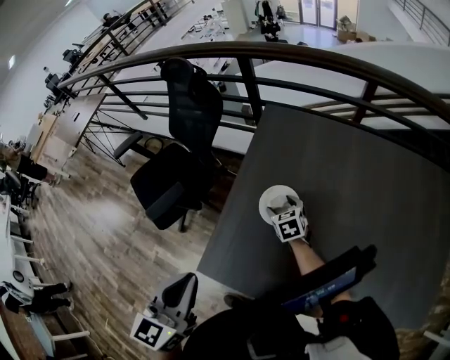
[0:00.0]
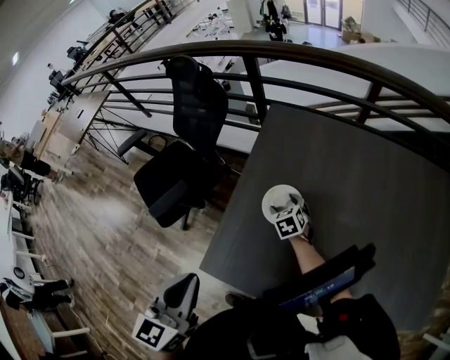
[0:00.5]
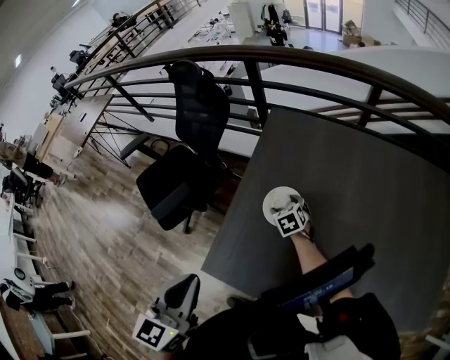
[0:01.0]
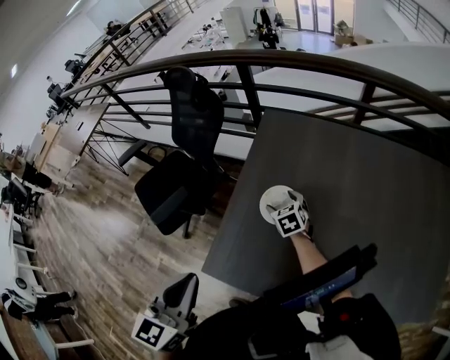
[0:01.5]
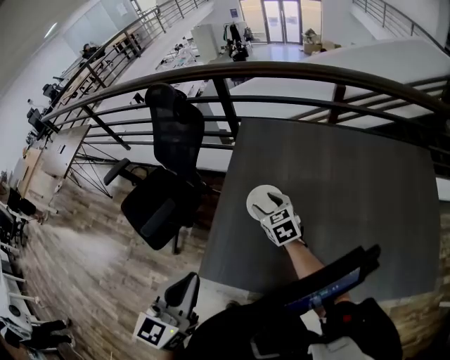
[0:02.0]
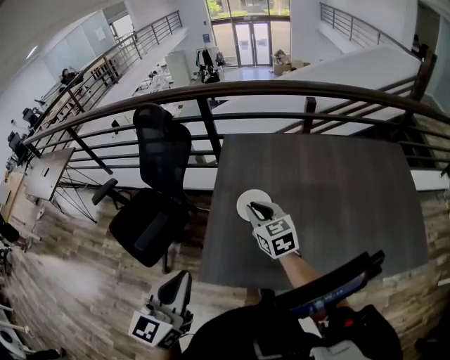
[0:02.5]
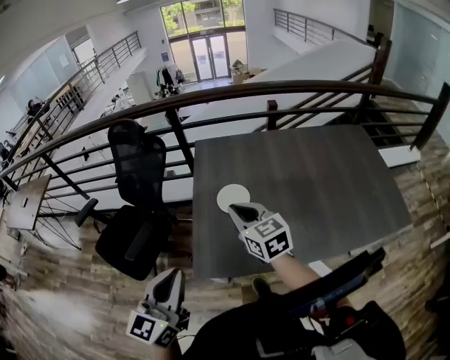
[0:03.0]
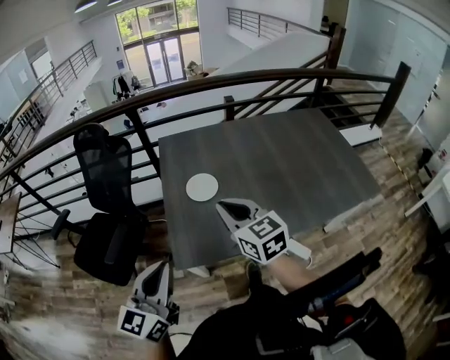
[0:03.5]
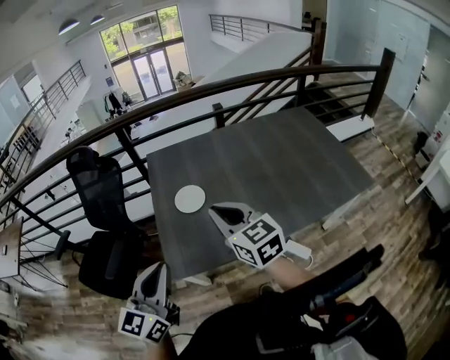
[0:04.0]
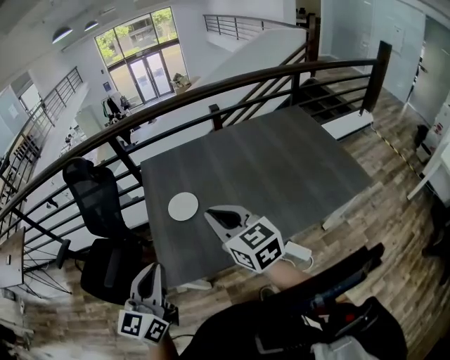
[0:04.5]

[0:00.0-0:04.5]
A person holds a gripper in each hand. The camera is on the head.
0:00.0 to 0:02.0: The right gripper goes some 10 cm upward.
0:02.0 to 0:04.5: The right gripper travels backward and upward by roughly 35 cm, turns by approximately 30 degrees, and closes its fingers; the left gripper heads backward, covering approximately 10 cm, and changes its angle by about 20 degrees.

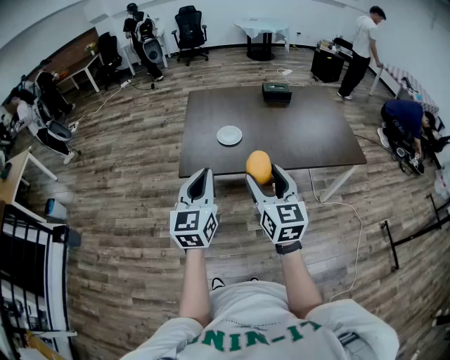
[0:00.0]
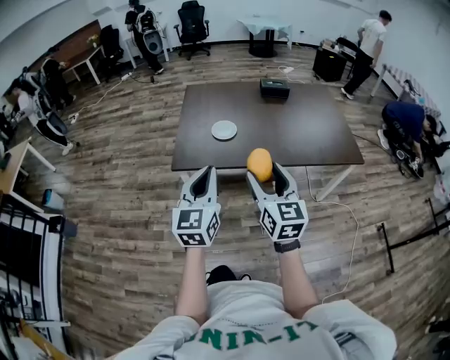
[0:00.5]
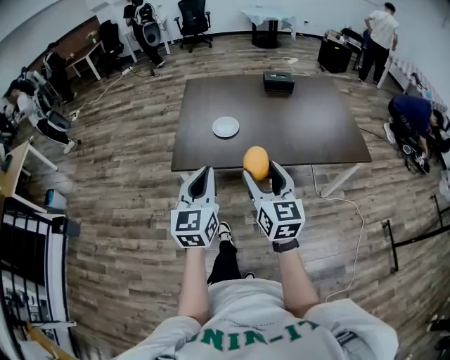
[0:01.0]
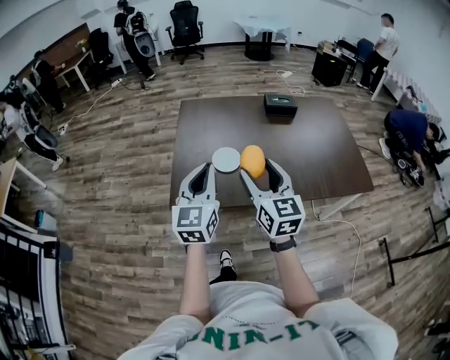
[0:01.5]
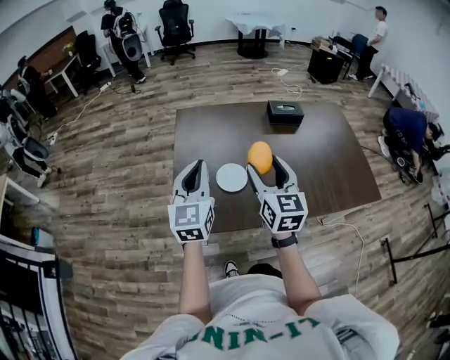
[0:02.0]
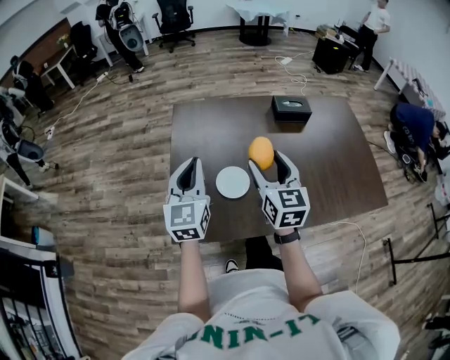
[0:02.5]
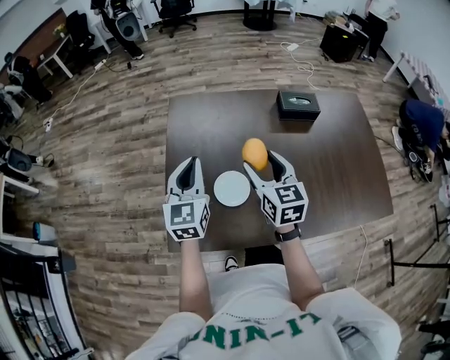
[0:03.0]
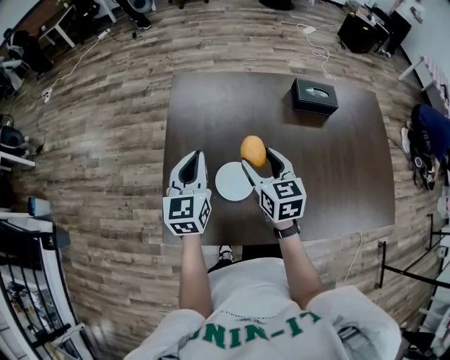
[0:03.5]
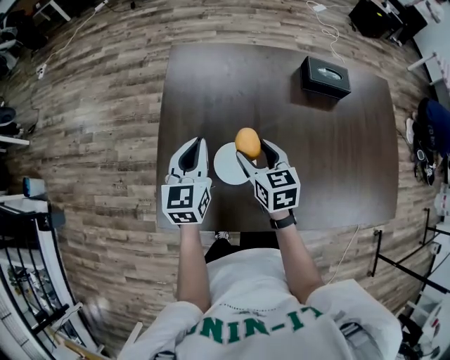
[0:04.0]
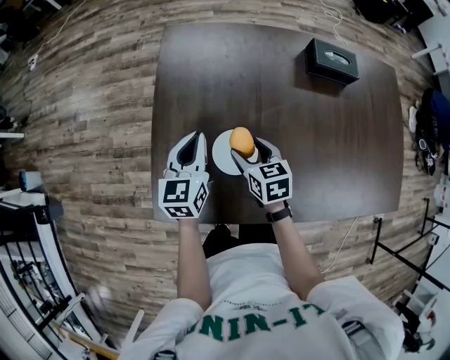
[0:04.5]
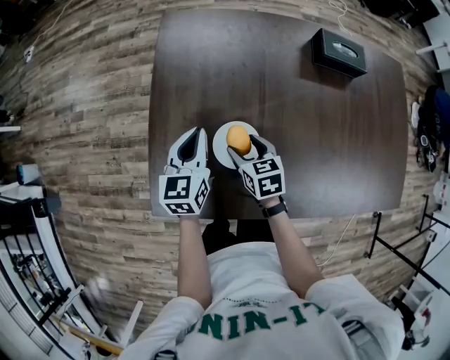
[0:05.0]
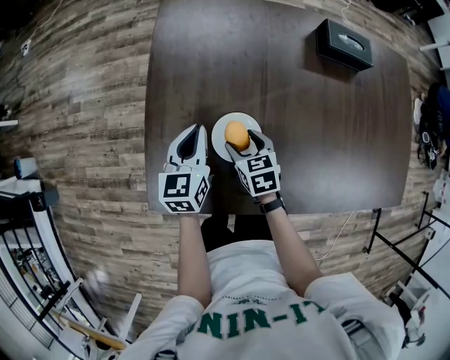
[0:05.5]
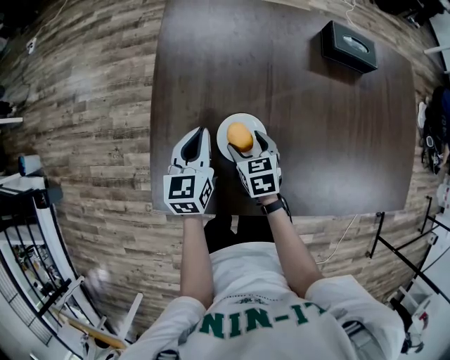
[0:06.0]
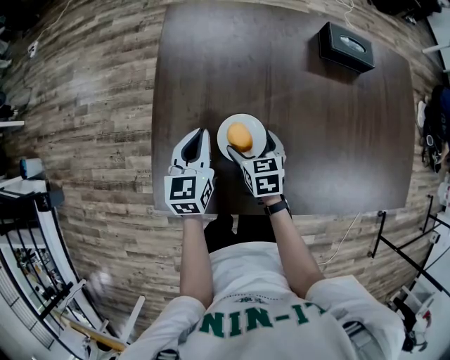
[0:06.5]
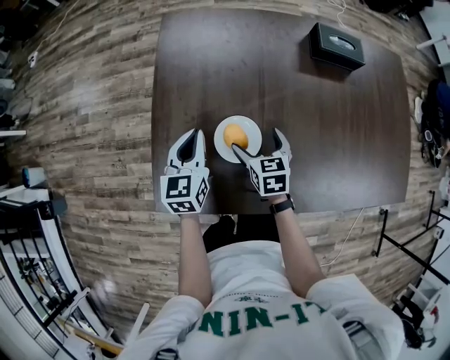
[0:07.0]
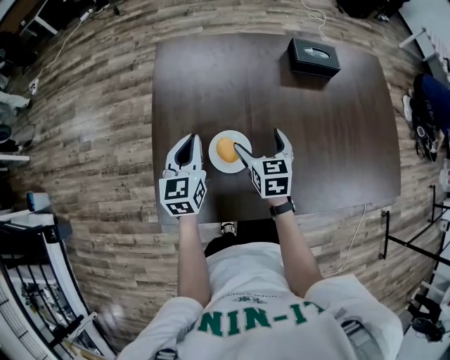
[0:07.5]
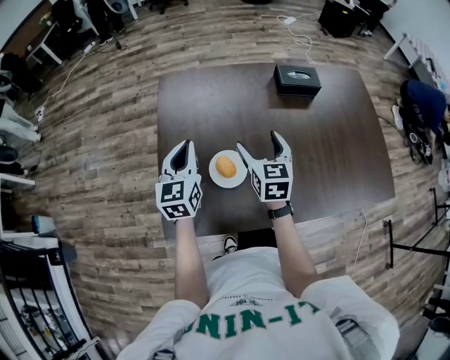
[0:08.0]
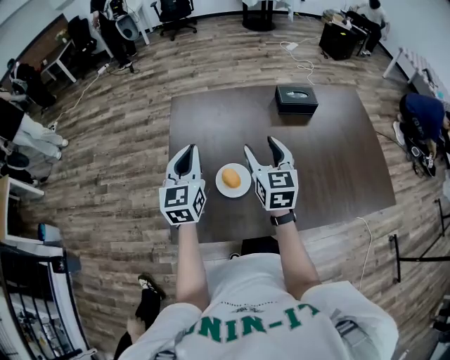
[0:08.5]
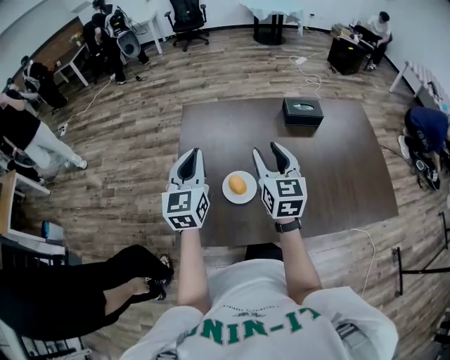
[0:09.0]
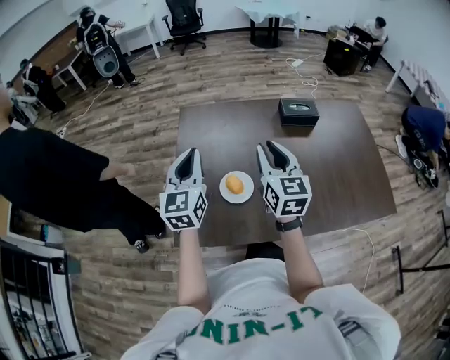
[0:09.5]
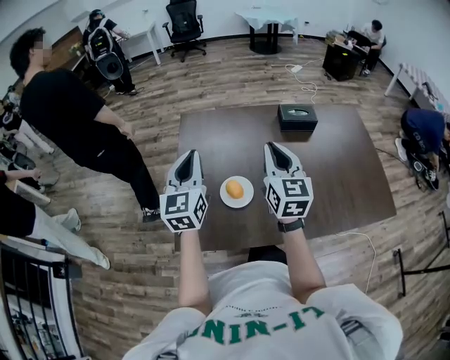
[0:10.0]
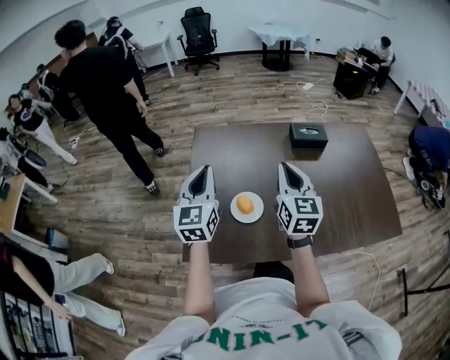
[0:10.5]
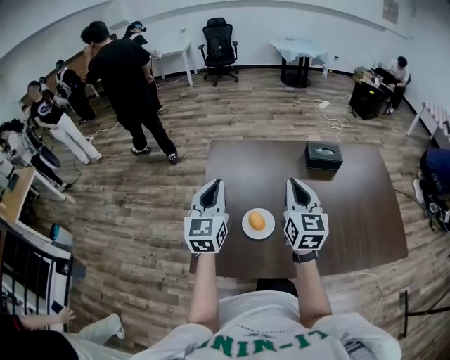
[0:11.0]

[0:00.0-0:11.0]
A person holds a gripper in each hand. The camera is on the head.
0:00.0 to 0:02.0: Both grippers travel together forward, some 40 cm.
0:02.0 to 0:03.5: The two grippers go about 25 cm forward and downward. The right gripper changes its angle by about 20 degrees.
0:03.5 to 0:05.5: Both grippers move downward, about 20 cm. The right gripper rotates roughly 20 degrees.
0:05.5 to 0:07.5: The left gripper heads upward, covering about 10 cm. Meanwhile the right gripper travels upward and to the right by approximately 15 cm, turns by approximately 20 degrees, and opens.
0:07.5 to 0:09.0: Both grippers move upward, about 20 cm. The right gripper turns by approximately 30 degrees, and closes.
0:09.0 to 0:11.0: The right gripper closes up.

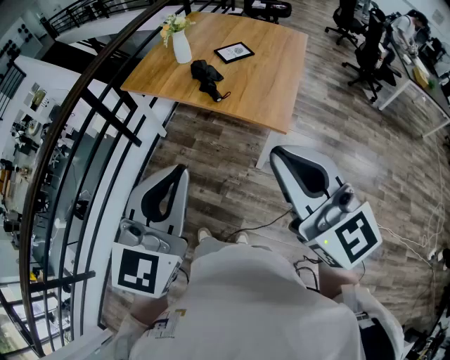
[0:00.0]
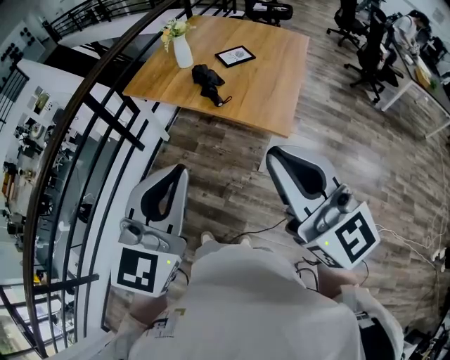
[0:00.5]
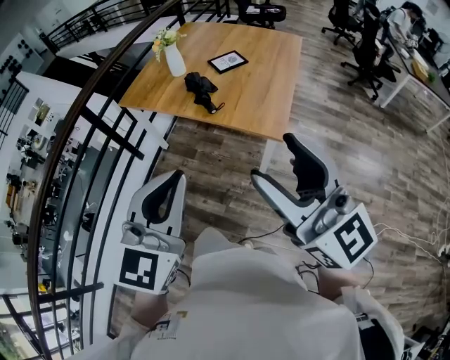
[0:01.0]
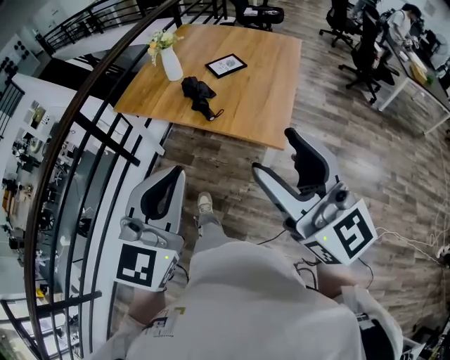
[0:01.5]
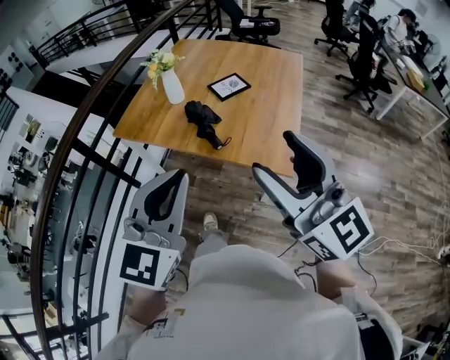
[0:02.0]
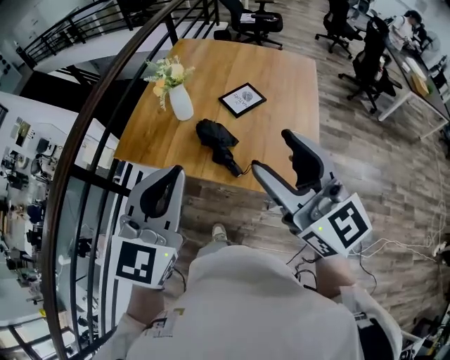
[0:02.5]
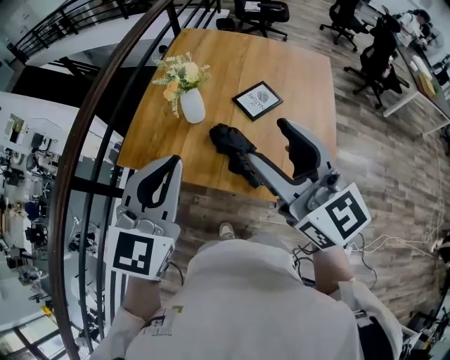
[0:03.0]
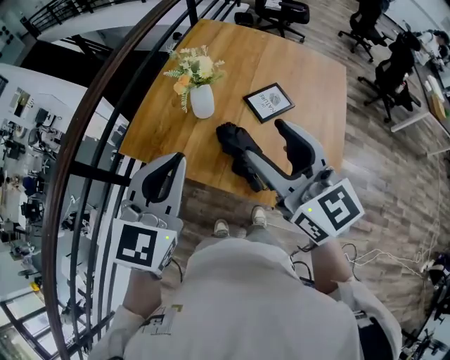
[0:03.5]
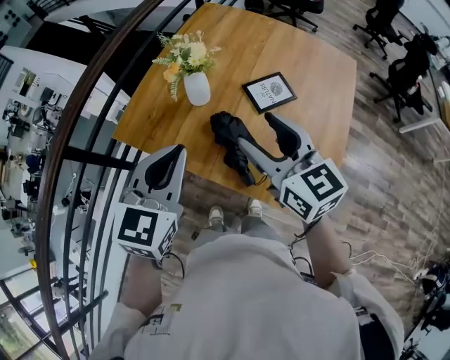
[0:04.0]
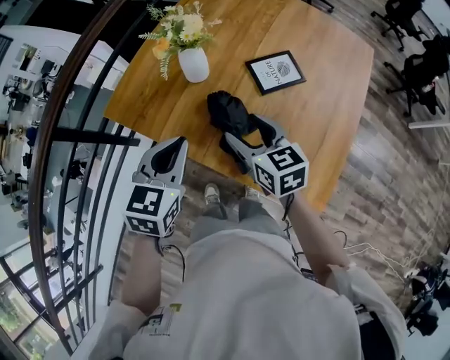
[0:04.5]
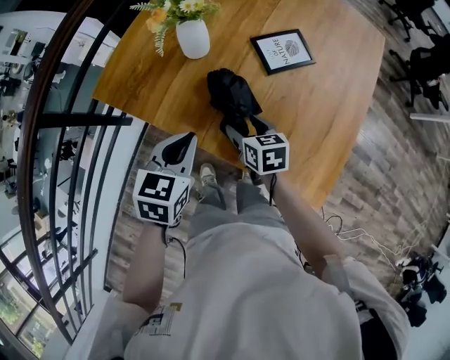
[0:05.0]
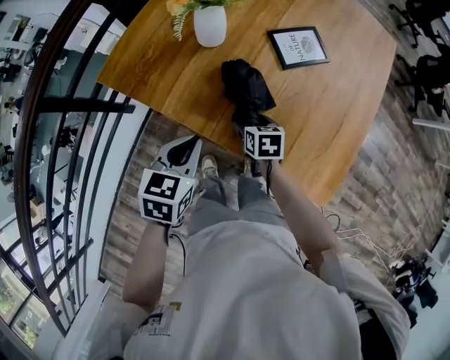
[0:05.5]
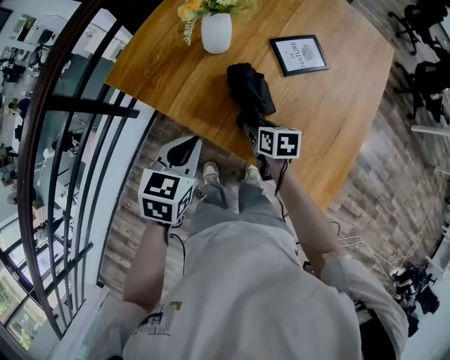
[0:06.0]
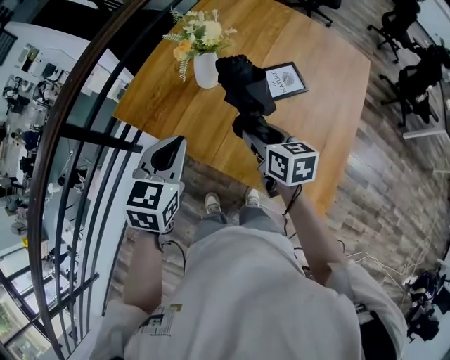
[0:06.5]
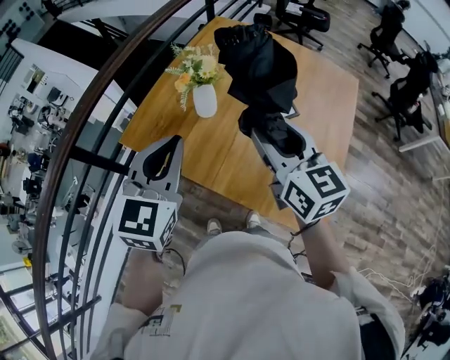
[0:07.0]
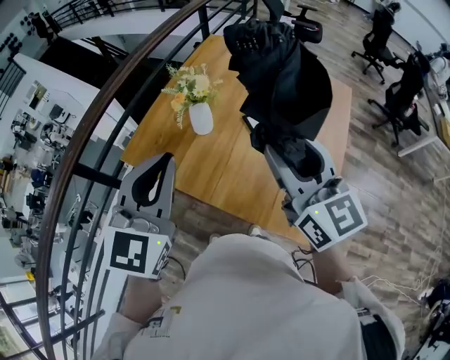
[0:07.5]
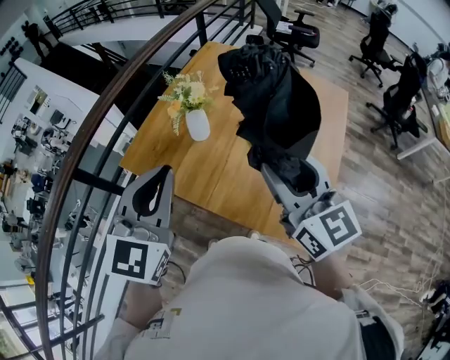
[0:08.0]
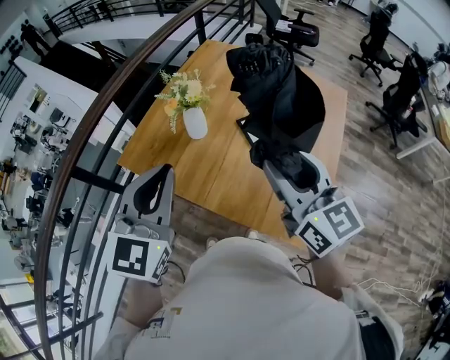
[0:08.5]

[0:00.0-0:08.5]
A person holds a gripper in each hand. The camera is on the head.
0:00.0 to 0:02.0: The two grippers go some 20 cm forward. The right gripper opens its fingers.
0:02.0 to 0:04.0: The grippers both shift forward by approximately 35 cm. The right gripper rotates some 30 degrees.
0:04.0 to 0:06.5: The right gripper goes roughly 20 cm downward, and changes its angle by approximately 30 degrees; the left gripper travels downward by about 10 cm.
0:06.5 to 0:08.5: The two grippers go approximately 20 cm upward. The left gripper swivels about 30 degrees; the right gripper turns by roughly 40 degrees.

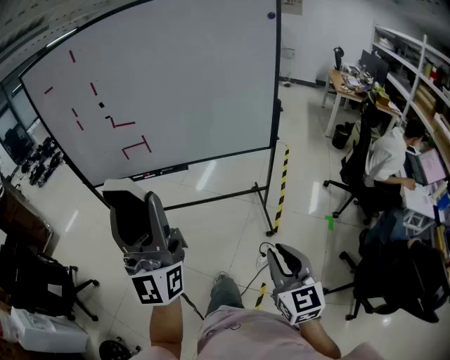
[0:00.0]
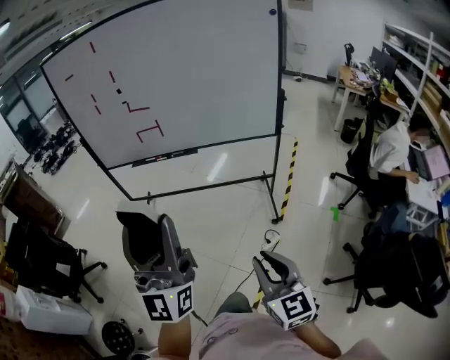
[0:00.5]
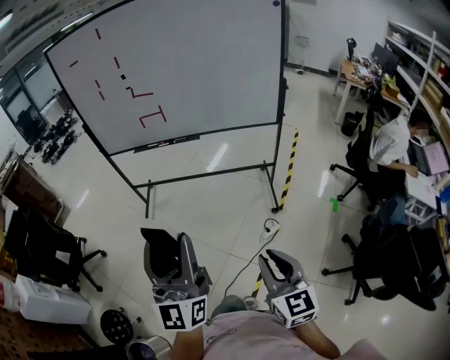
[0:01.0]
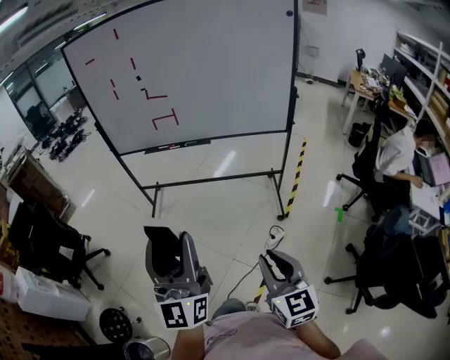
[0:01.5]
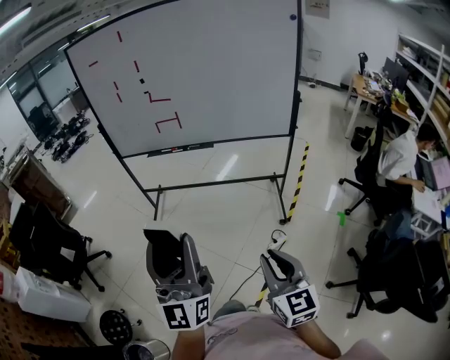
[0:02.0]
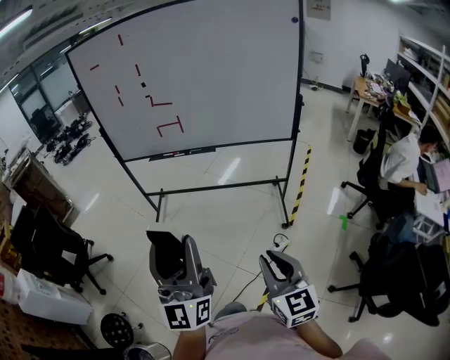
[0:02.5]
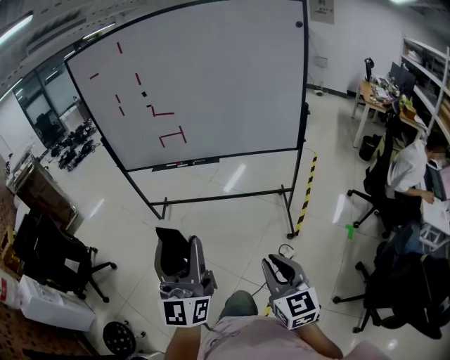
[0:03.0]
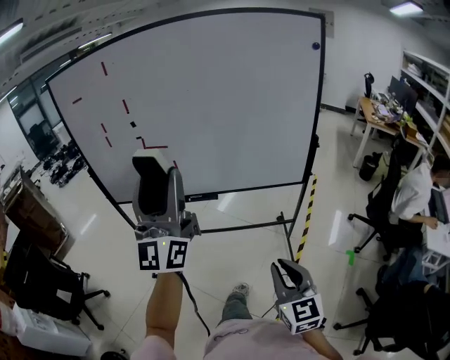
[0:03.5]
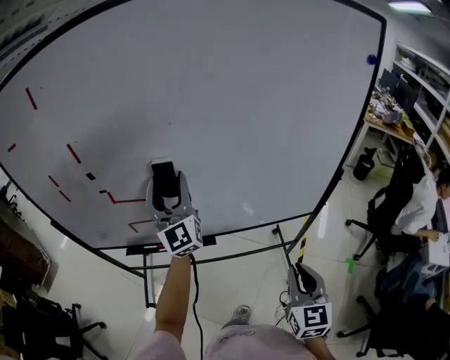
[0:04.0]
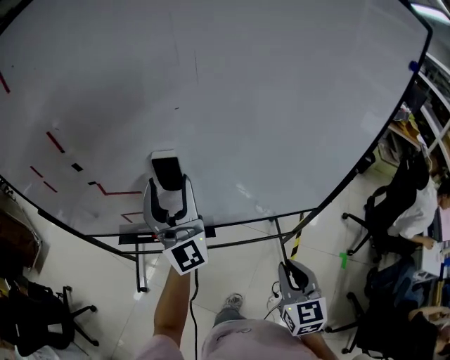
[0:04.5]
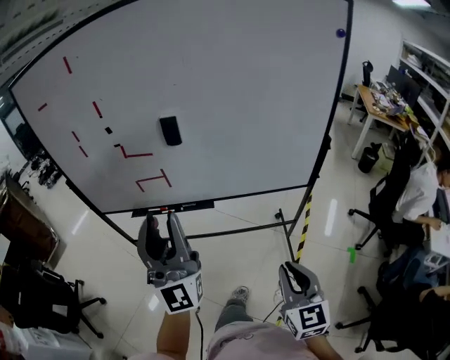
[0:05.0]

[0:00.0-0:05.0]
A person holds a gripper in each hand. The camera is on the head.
0:00.0 to 0:02.5: The right gripper heads backward and to the left, covering roughly 15 cm. Meanwhile the left gripper is displaced backward and downward by roughly 20 cm.
0:02.5 to 0:05.0: The grippers both shift forward by roughly 40 cm. The left gripper turns by roughly 20 degrees, and closes up.
